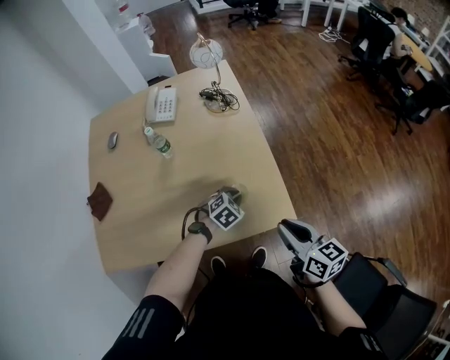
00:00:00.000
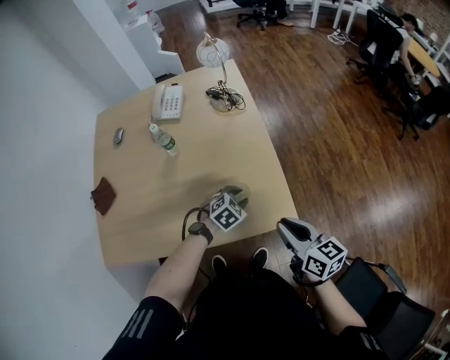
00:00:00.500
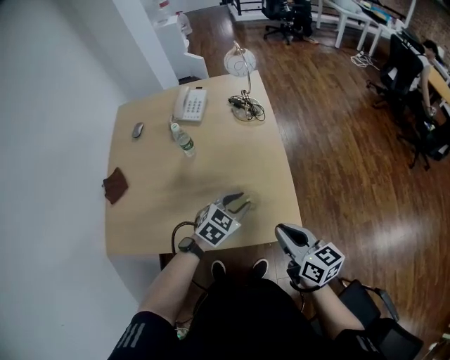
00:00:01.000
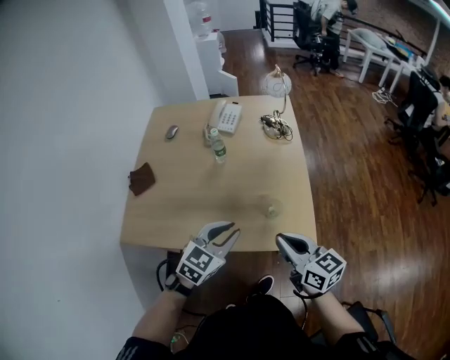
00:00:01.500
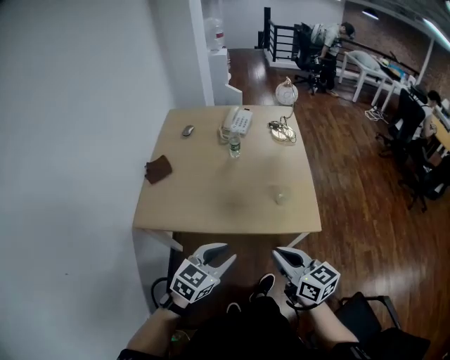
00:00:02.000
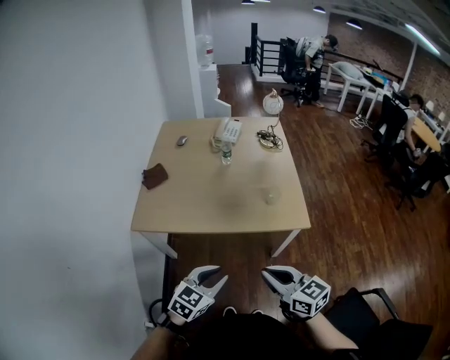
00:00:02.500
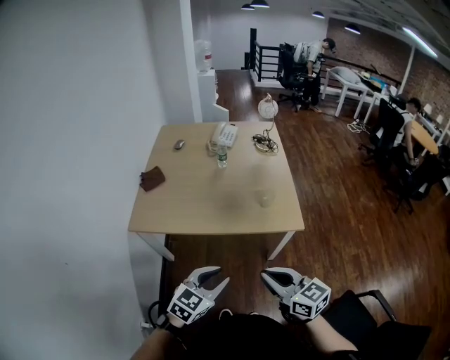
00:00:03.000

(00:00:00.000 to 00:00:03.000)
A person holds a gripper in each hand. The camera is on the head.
00:00:00.000 - 00:00:01.500: The left gripper is displaced upward, backward and to the left by approximately 30 cm, and swivels about 40 degrees. Meanwhile the right gripper travels to the left and upward by approximately 15 cm, and swivels about 20 degrees.
00:00:01.500 - 00:00:03.000: Both grippers move backward, roughly 30 cm.

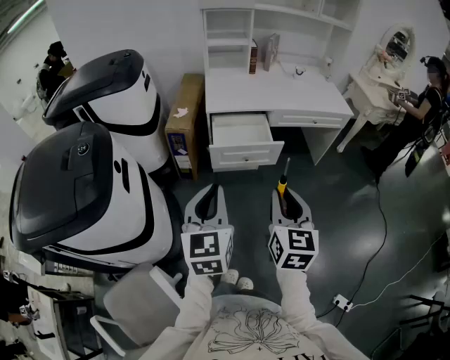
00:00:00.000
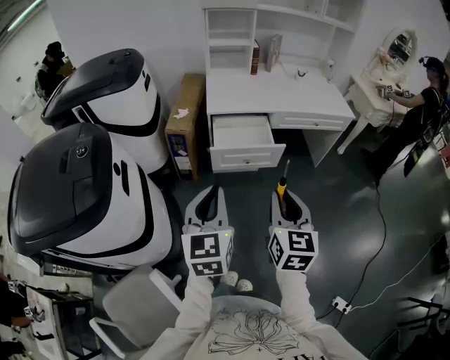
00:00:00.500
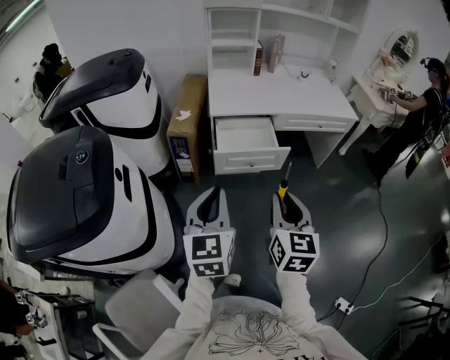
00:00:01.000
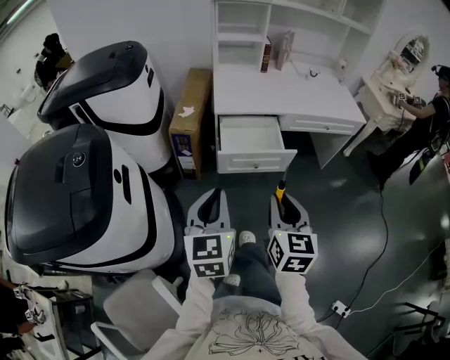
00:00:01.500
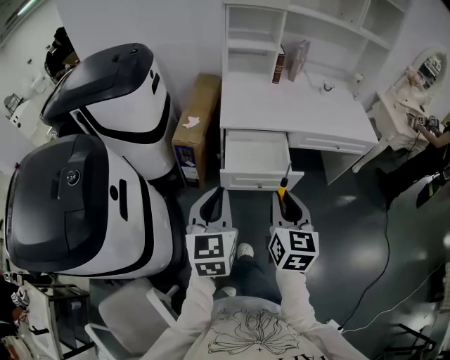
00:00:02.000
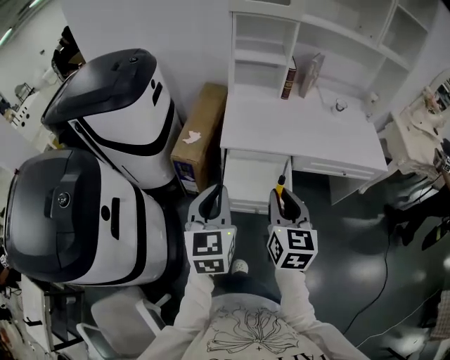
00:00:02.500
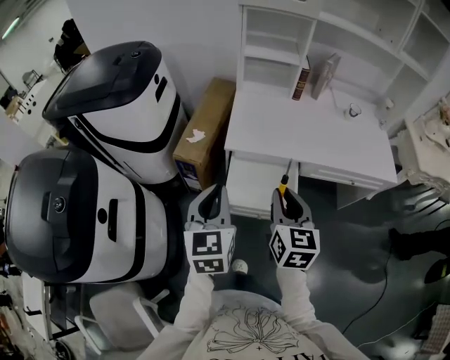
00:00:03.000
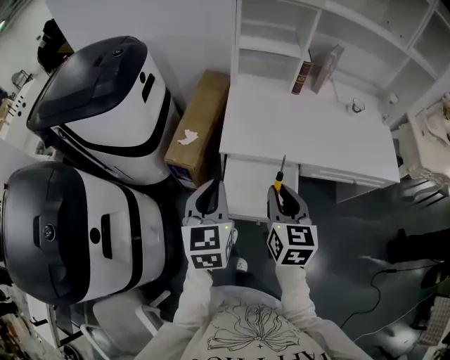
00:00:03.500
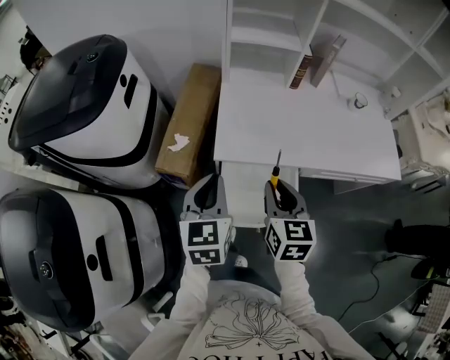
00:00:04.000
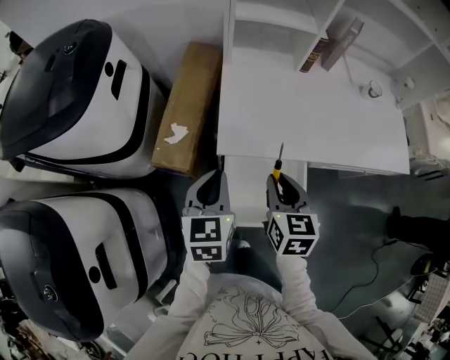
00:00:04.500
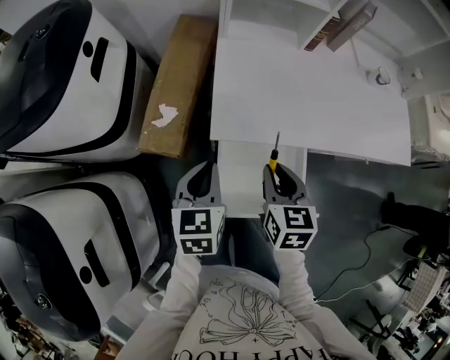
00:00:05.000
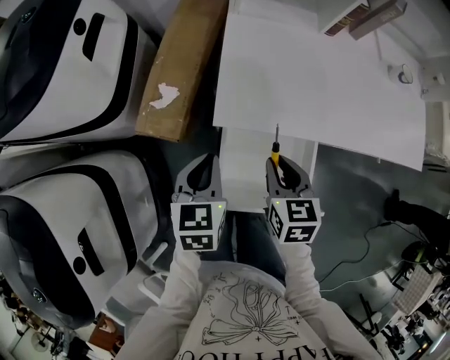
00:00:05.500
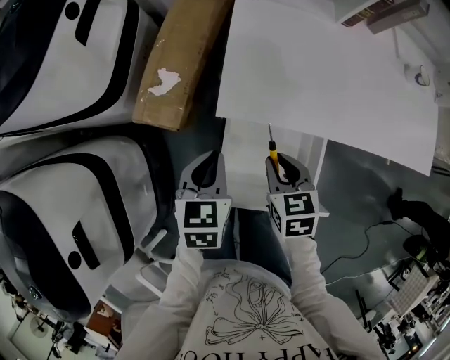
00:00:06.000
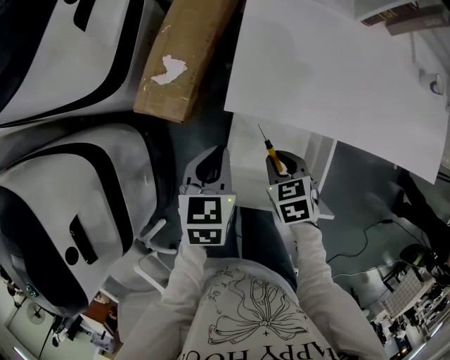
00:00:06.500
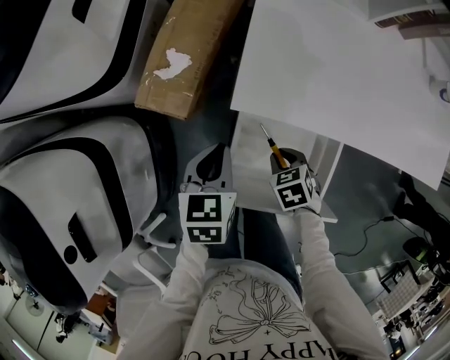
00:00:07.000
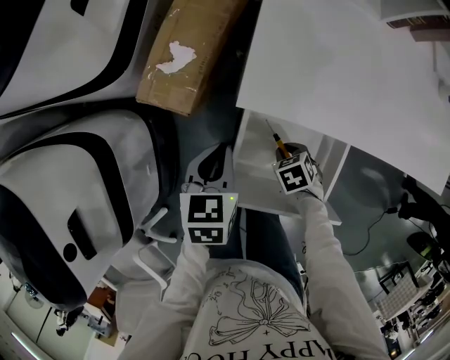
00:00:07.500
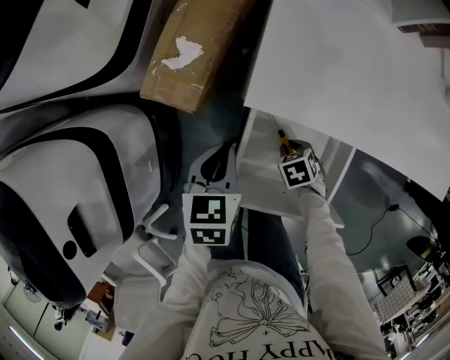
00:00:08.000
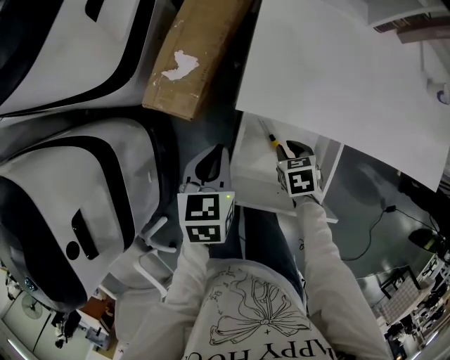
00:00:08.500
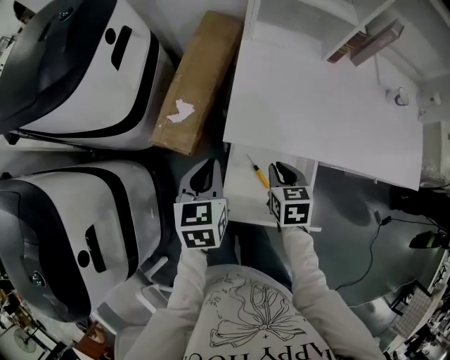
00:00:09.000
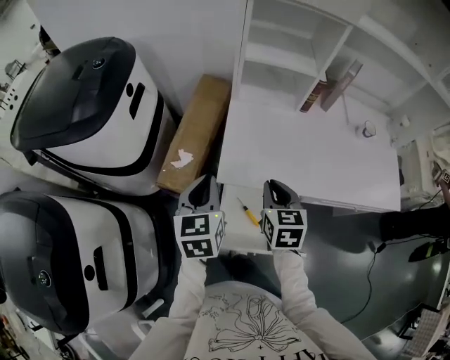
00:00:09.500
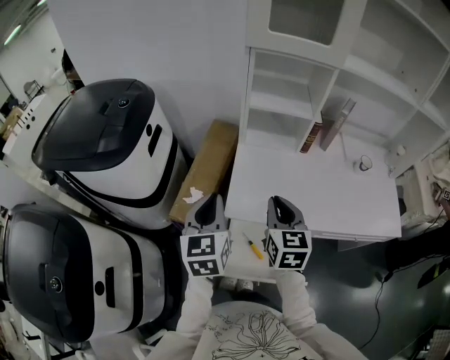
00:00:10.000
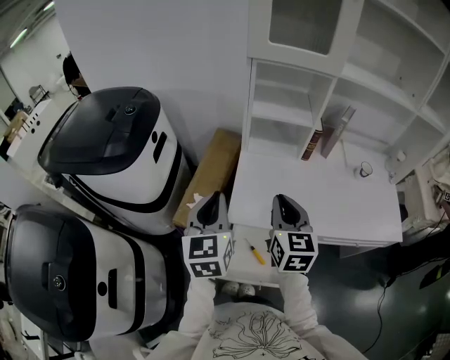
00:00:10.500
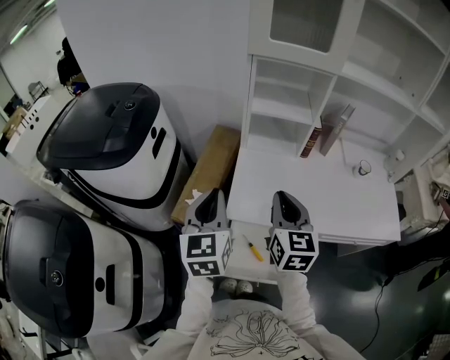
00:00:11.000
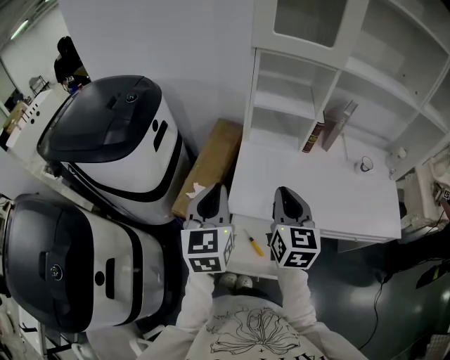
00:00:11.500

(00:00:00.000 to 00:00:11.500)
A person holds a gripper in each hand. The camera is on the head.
00:00:00.000 - 00:00:02.000: Both grippers travel together forward, some 20 cm.
00:00:02.000 - 00:00:04.000: The grippers both shift forward by roughly 35 cm.
00:00:04.000 - 00:00:06.000: Both grippers move downward, some 20 cm. The left gripper rotates roughly 20 degrees, while the right gripper changes its angle by some 30 degrees.
00:00:06.000 - 00:00:07.500: The left gripper moves downward, approximately 5 cm. Meanwhile the right gripper shifts about 20 cm downward, and turns by some 30 degrees.
00:00:07.500 - 00:00:09.500: The left gripper goes approximately 25 cm upward, and swivels about 30 degrees. The right gripper shifts approximately 35 cm upward, and points its fingers approximately 40 degrees further upward.
00:00:09.500 - 00:00:11.500: Both grippers travel together upward, roughly 15 cm. The right gripper changes its angle by roughly 20 degrees.

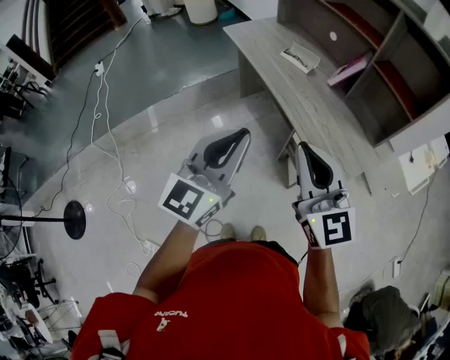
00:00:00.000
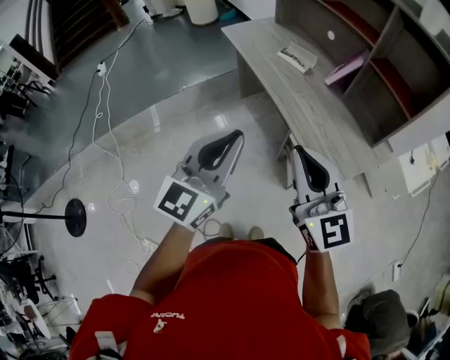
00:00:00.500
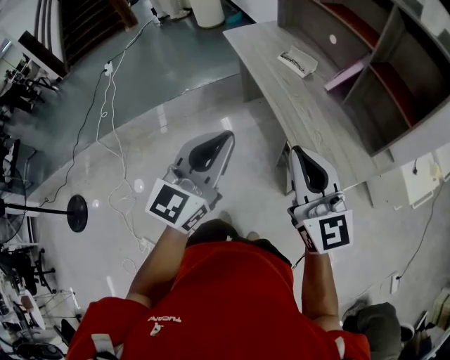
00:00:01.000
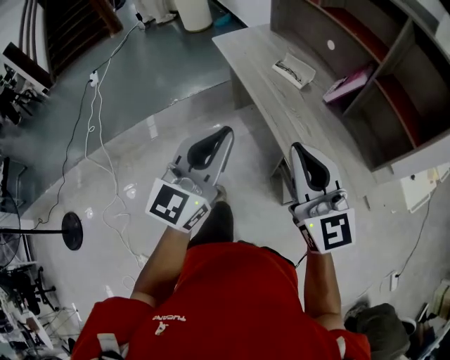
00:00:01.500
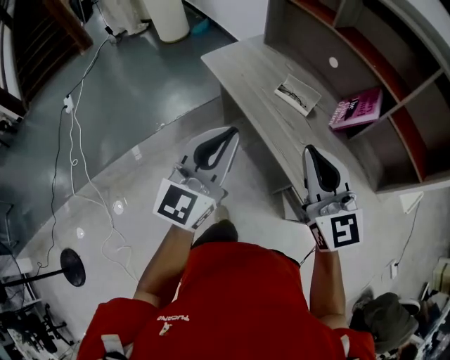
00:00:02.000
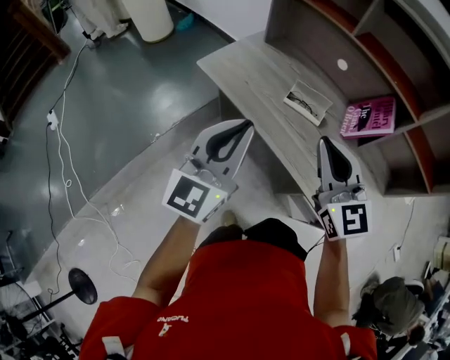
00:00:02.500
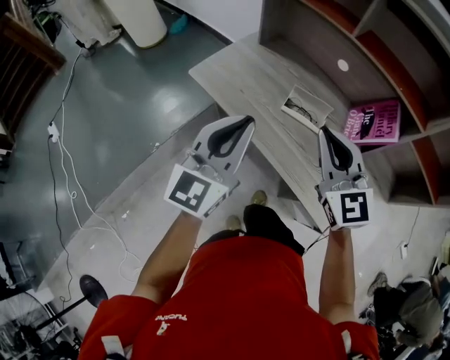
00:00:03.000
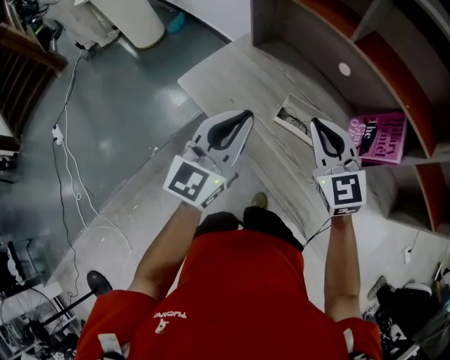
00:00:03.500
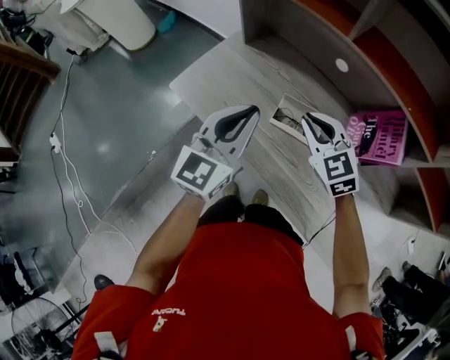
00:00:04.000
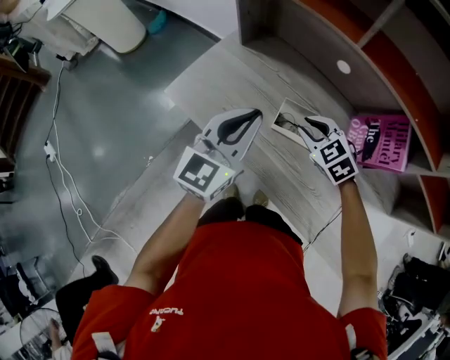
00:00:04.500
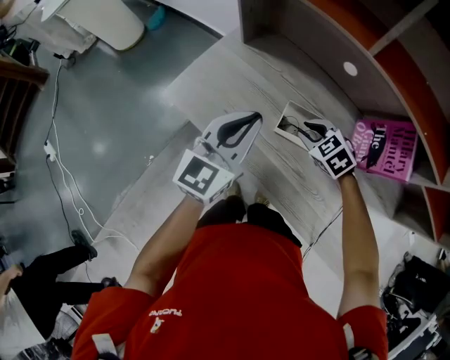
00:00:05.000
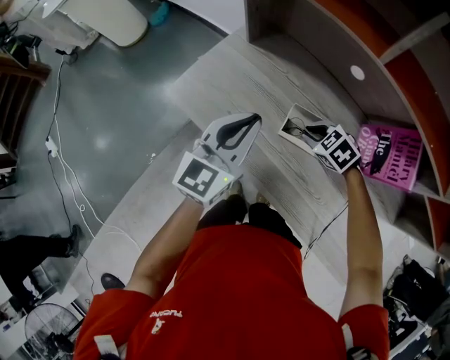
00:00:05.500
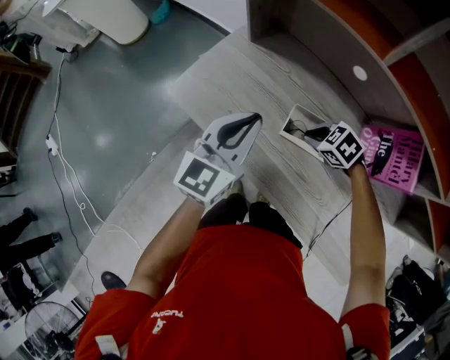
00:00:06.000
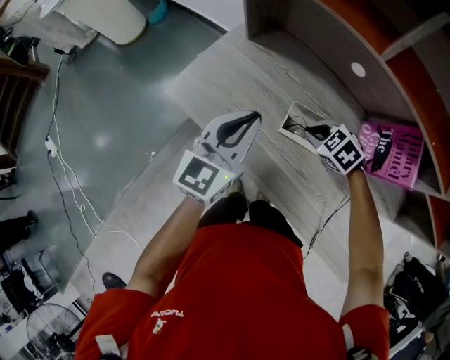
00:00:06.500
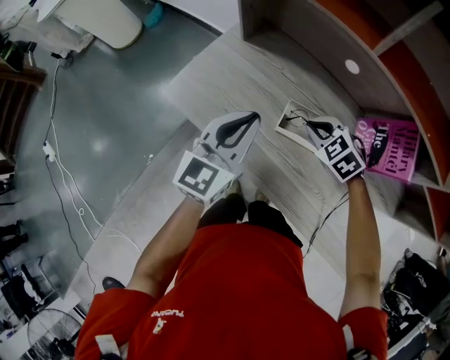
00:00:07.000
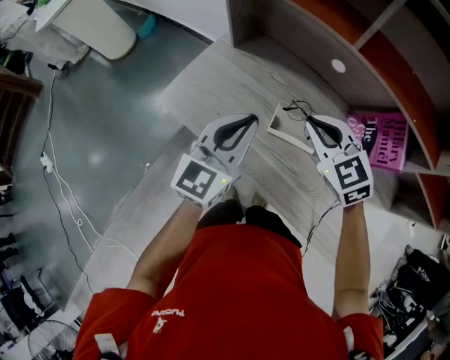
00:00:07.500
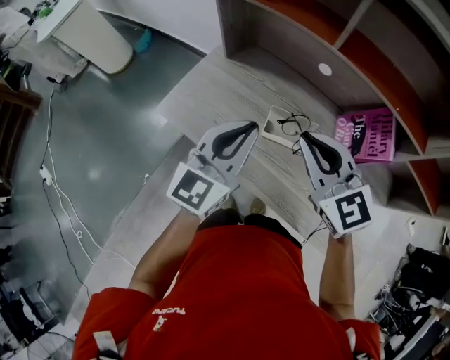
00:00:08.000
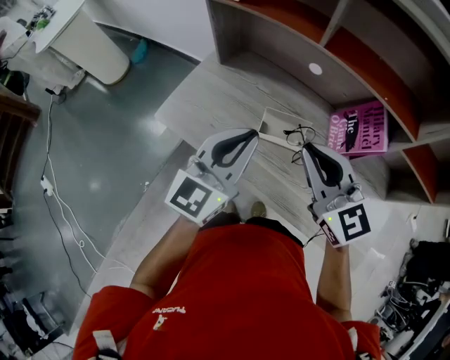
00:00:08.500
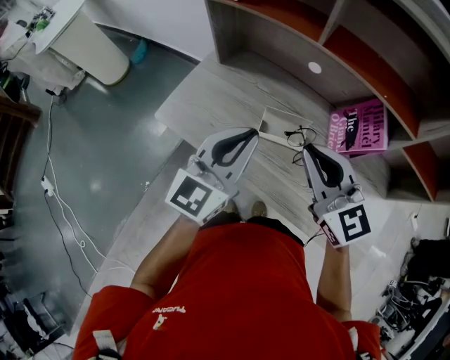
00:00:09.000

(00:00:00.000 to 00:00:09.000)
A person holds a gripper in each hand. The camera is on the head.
00:00:00.000 - 00:00:02.000: The grippers both shift forward by approximately 25 cm.
00:00:02.000 - 00:00:04.500: The left gripper shifts approximately 35 cm forward, and changes its angle by approximately 20 degrees, while the right gripper heads forward and downward, covering approximately 40 cm, points its fingers about 50 degrees further downward, and opens up.
00:00:04.500 - 00:00:07.000: The right gripper travels downward and back again, roughly 10 cm each way, and closes its fingers.
00:00:07.000 - 00:00:09.000: The right gripper shifts approximately 25 cm upward and backward, and angles its fingers upward, by approximately 50 degrees, while the left gripper goes some 10 cm upward and backward.

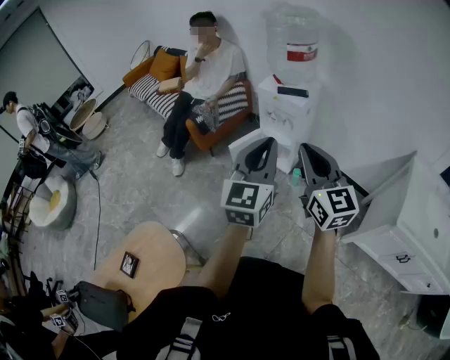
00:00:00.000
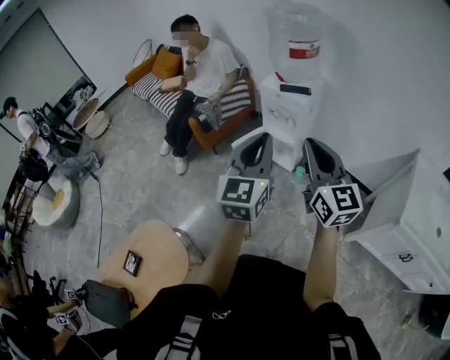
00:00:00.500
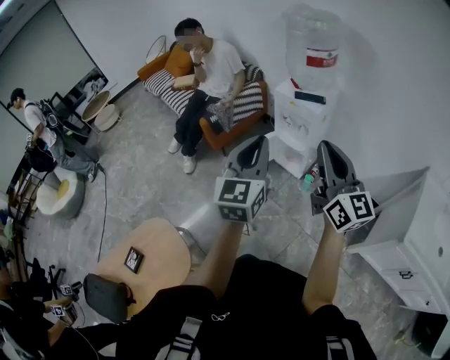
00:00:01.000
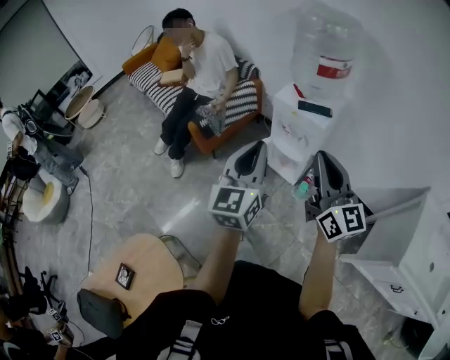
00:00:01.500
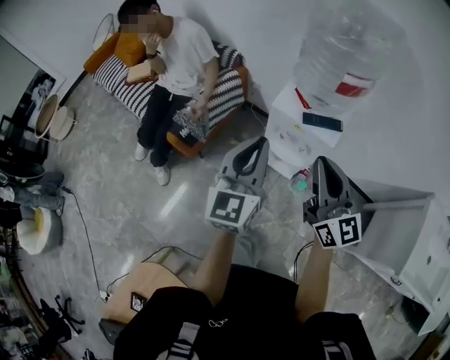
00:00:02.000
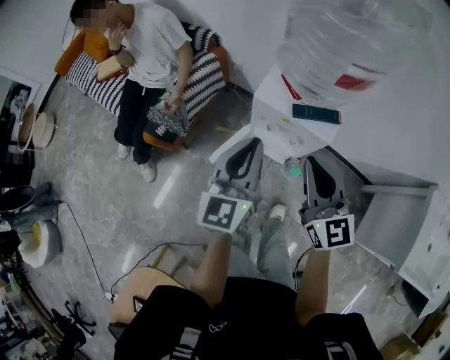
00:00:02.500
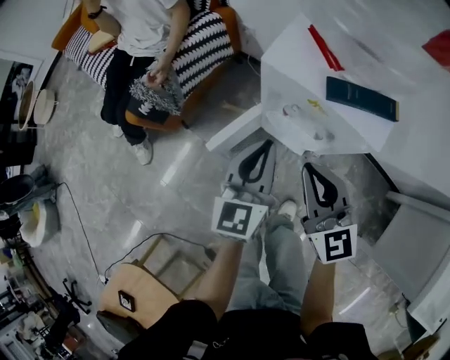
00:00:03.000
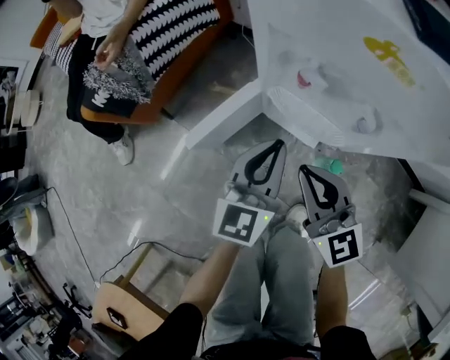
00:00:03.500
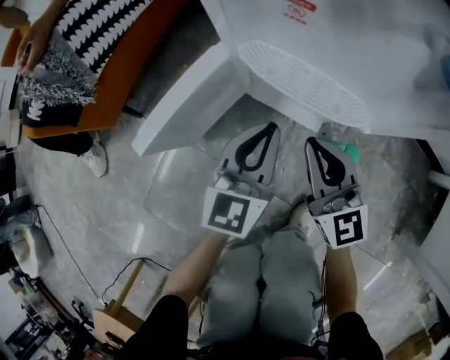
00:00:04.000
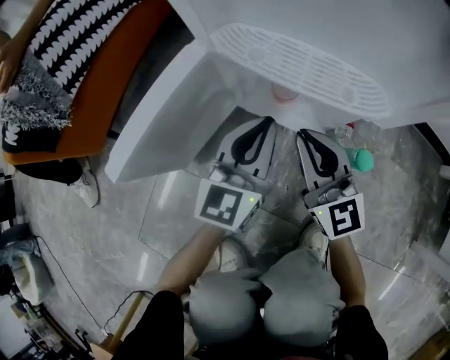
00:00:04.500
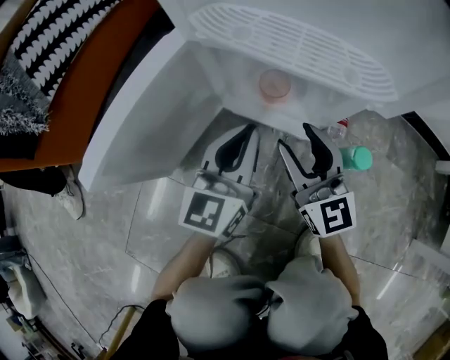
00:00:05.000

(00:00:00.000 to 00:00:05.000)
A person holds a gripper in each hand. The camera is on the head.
00:00:00.000 - 00:00:02.500: The pair of grippers is taken forward, roughly 50 cm.
00:00:02.500 - 00:00:05.000: The two grippers go some 70 cm downward. The right gripper opens.
